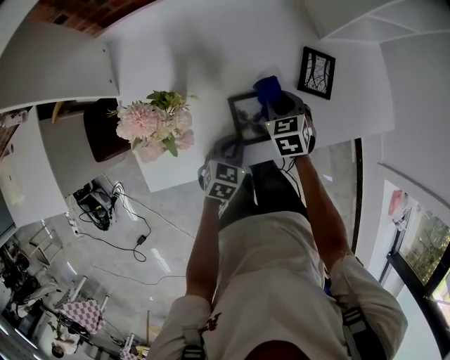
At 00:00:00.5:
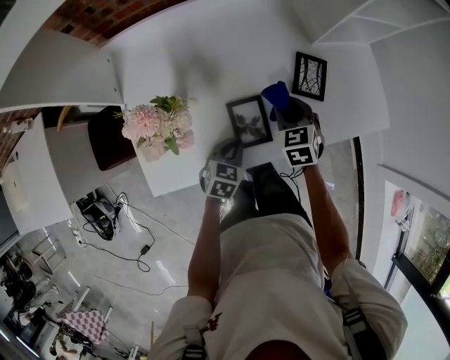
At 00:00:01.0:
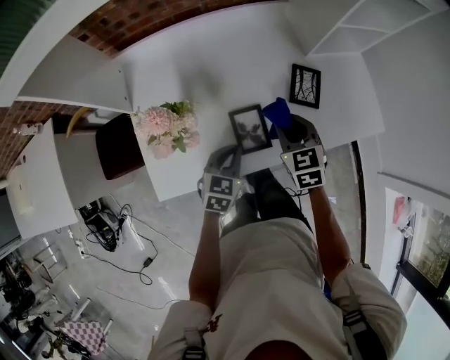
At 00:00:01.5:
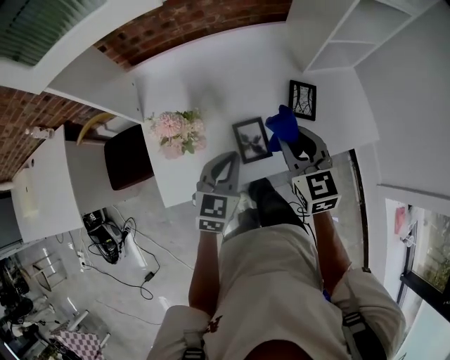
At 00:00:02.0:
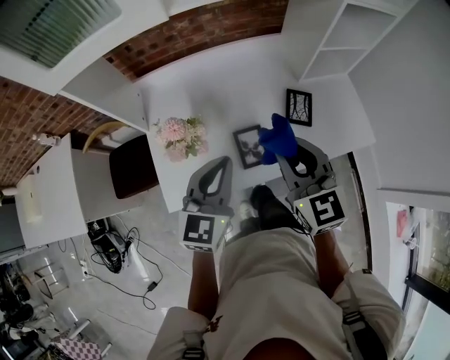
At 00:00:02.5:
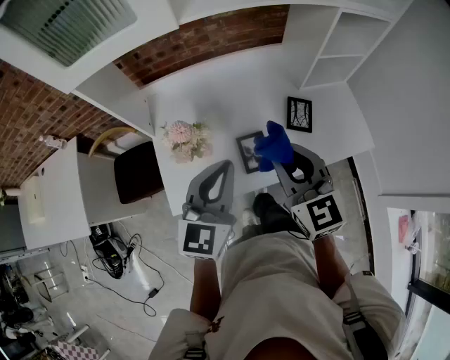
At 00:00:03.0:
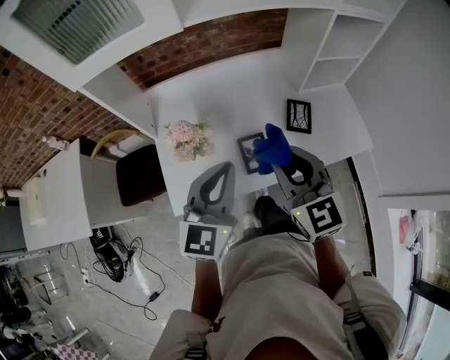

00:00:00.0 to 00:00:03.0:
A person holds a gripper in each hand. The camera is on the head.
00:00:00.0 to 00:00:01.5: Both grippers move upward, about 20 cm. The left gripper rotates some 20 degrees. Meanwhile the right gripper swivels roughly 30 degrees.
00:00:01.5 to 00:00:03.0: The left gripper shifts roughly 15 cm upward; the right gripper goes about 15 cm upward and backward.

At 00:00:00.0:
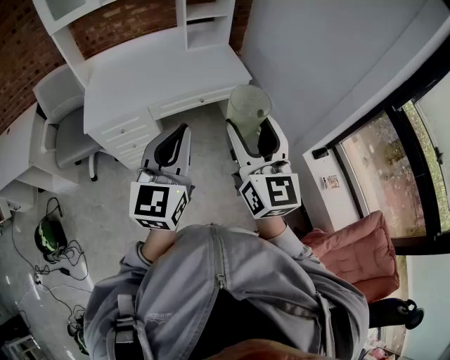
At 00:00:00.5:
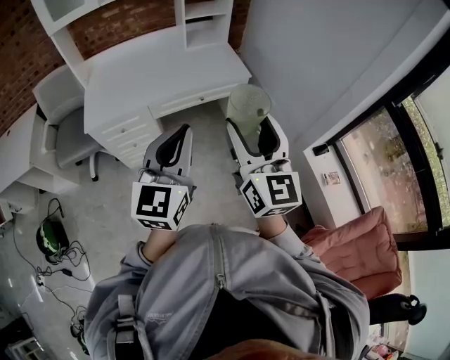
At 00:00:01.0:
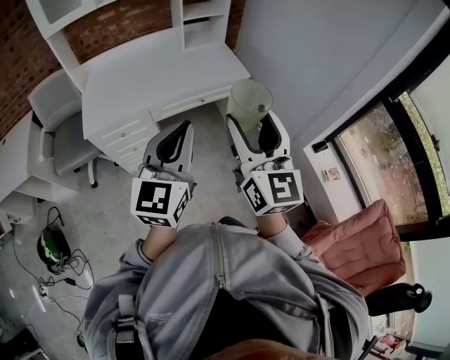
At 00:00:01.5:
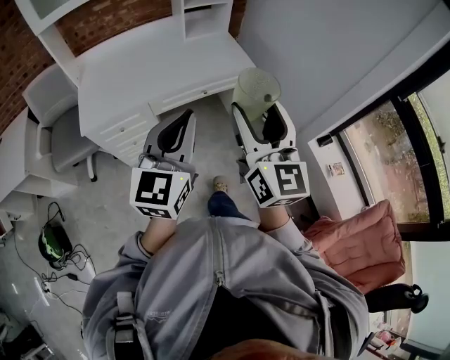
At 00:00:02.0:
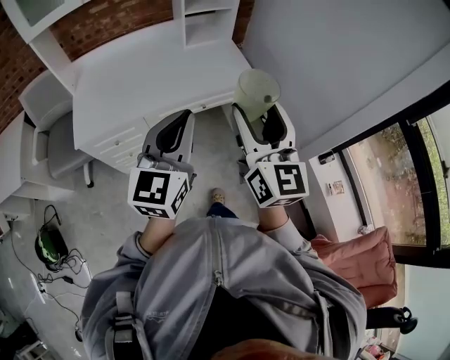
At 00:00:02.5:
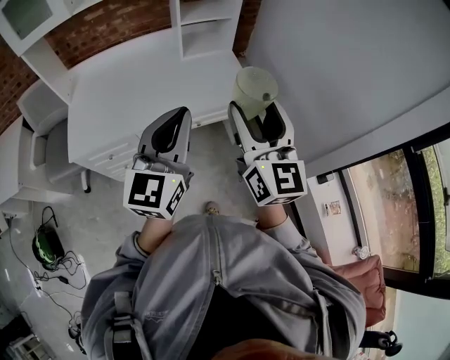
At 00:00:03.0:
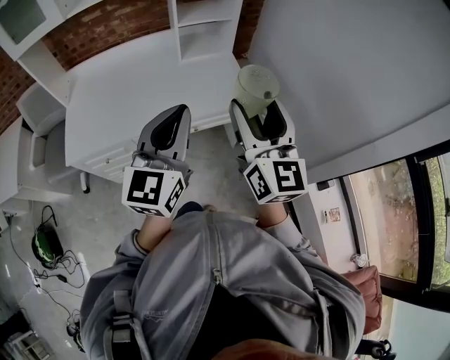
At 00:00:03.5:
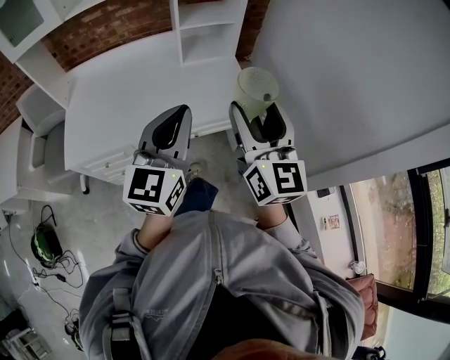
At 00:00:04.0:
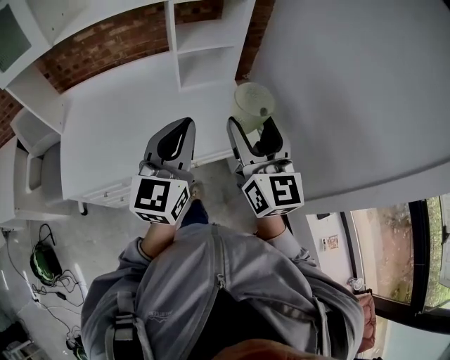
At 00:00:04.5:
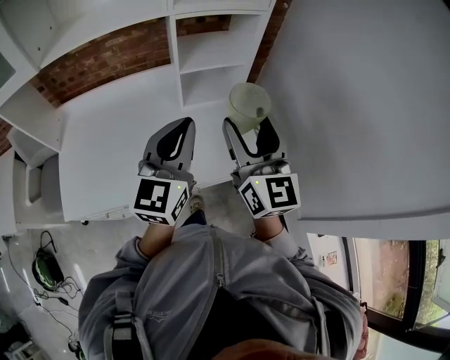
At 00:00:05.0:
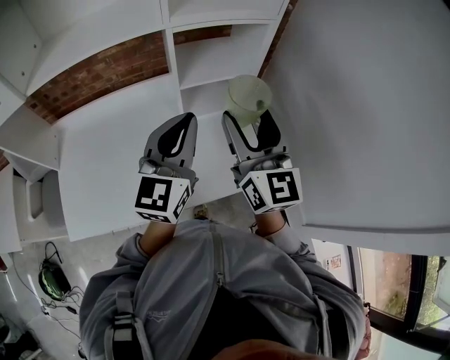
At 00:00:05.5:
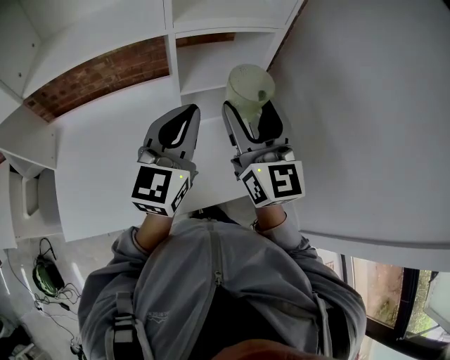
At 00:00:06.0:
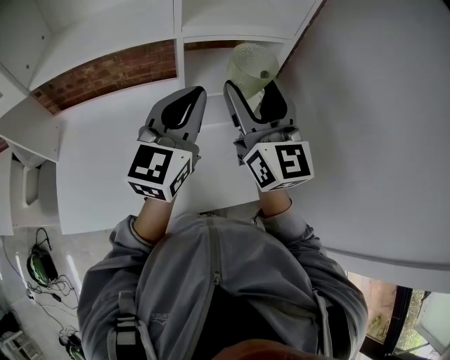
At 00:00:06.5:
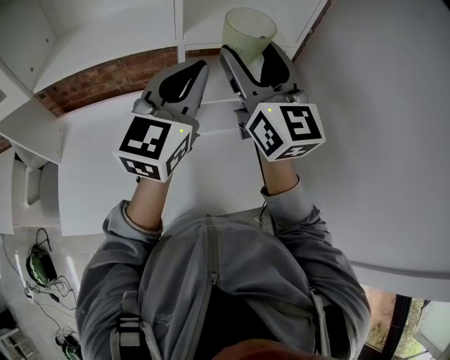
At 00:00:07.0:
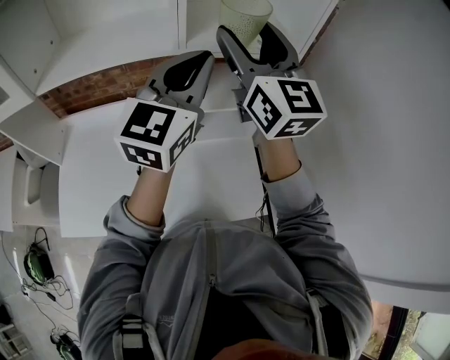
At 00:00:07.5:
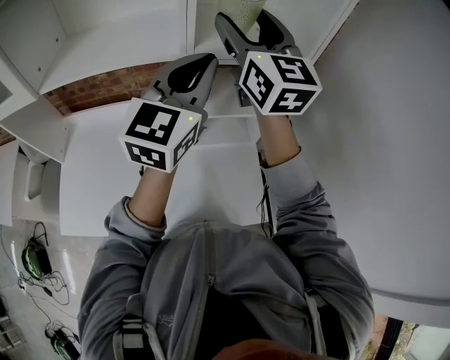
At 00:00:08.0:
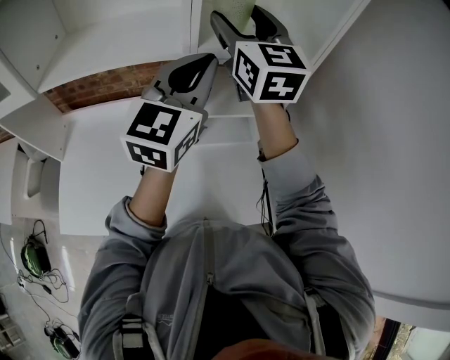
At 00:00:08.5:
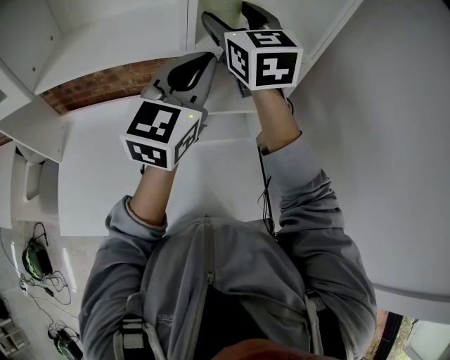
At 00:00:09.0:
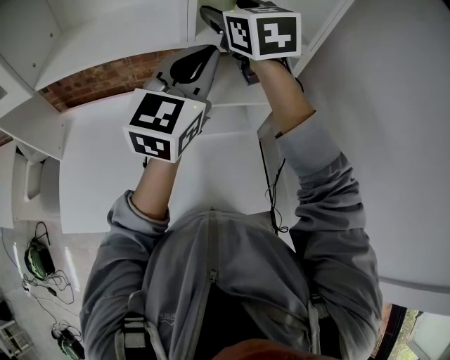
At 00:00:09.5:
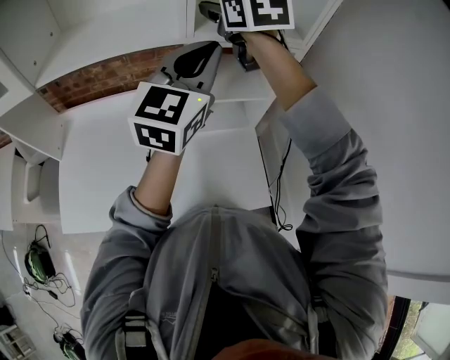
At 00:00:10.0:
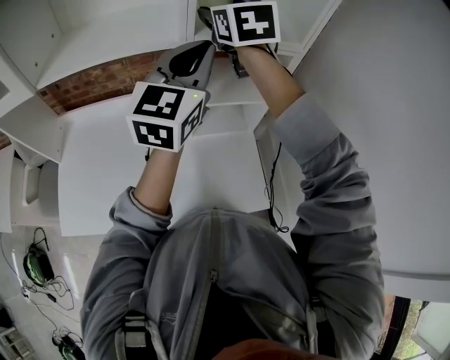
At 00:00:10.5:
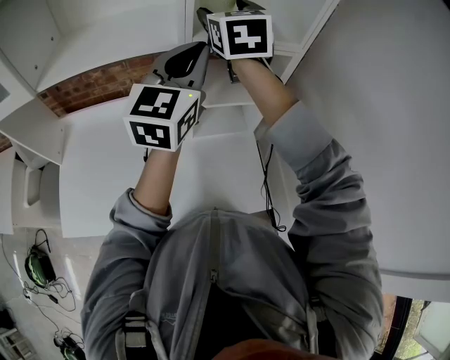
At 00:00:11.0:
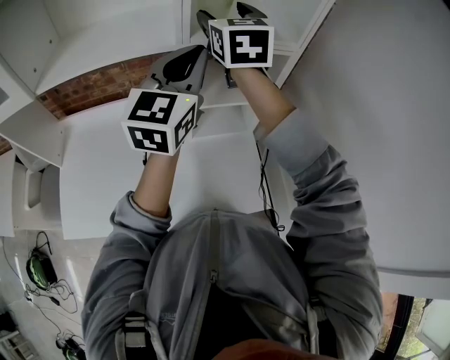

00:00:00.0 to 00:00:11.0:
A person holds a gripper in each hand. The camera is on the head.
00:00:00.0 to 00:00:02.0: The two grippers go roughly 15 cm forward.
00:00:02.0 to 00:00:03.5: Both grippers move forward, some 20 cm.
00:00:03.5 to 00:00:05.5: The grippers both shift forward by approximately 35 cm.
00:00:05.5 to 00:00:07.5: The two grippers go approximately 20 cm forward and upward.
00:00:07.5 to 00:00:09.0: The right gripper changes place by approximately 5 cm, and changes its angle by some 20 degrees.
00:00:09.0 to 00:00:11.0: There are only small adjustments of the grippers.

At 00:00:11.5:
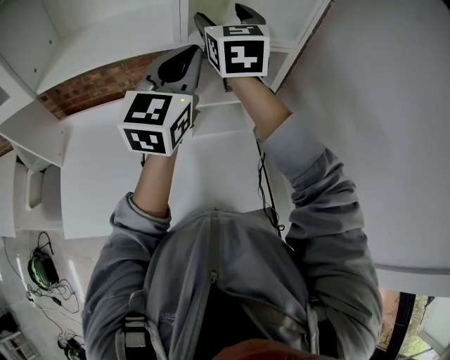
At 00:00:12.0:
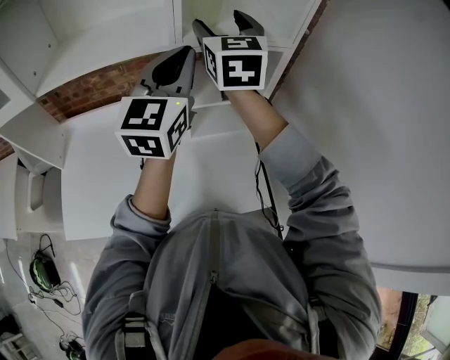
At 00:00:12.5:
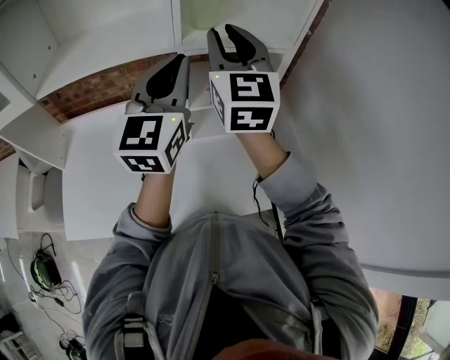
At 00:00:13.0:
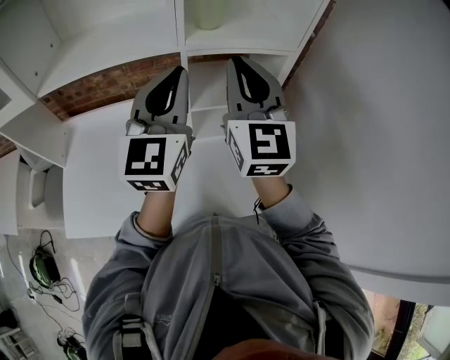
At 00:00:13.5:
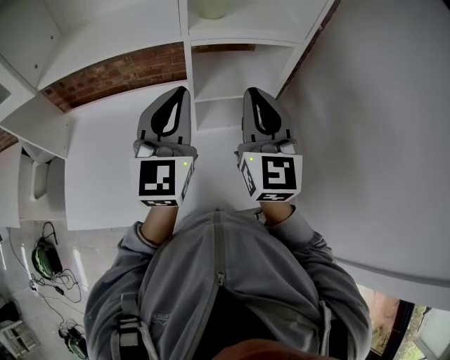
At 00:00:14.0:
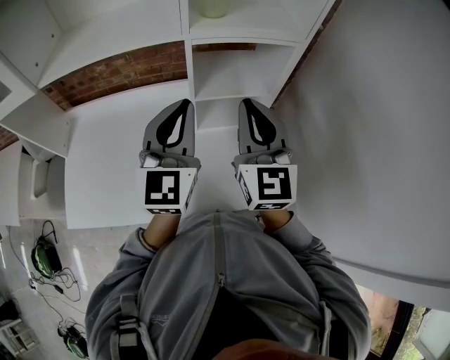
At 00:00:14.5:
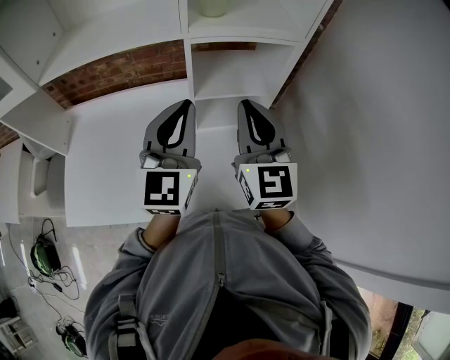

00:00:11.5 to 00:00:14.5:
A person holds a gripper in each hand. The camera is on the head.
00:00:11.5 to 00:00:13.0: The right gripper travels backward by roughly 15 cm, and closes up.
00:00:13.0 to 00:00:14.5: The left gripper heads downward, covering approximately 5 cm, while the right gripper travels downward and backward by about 10 cm.

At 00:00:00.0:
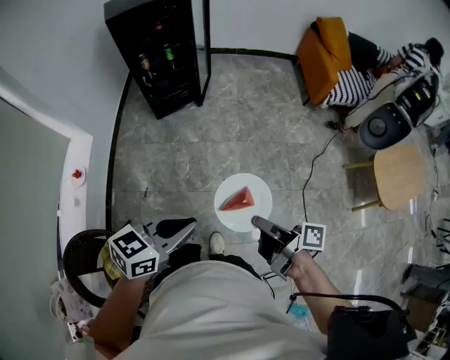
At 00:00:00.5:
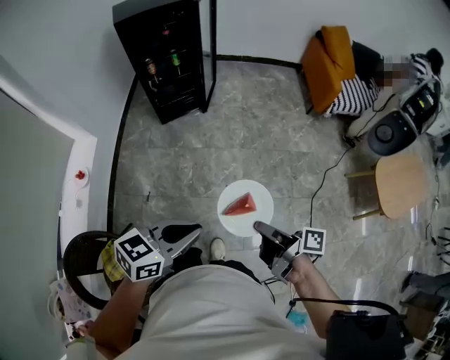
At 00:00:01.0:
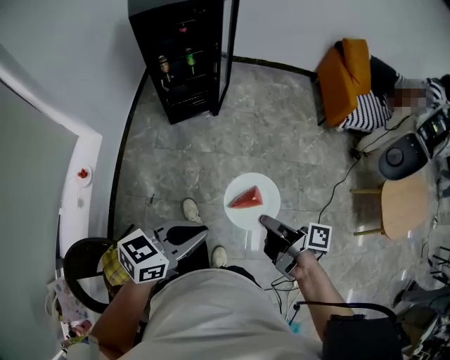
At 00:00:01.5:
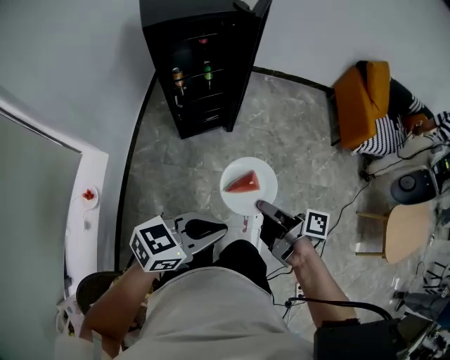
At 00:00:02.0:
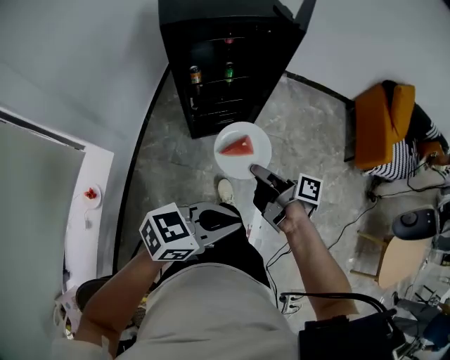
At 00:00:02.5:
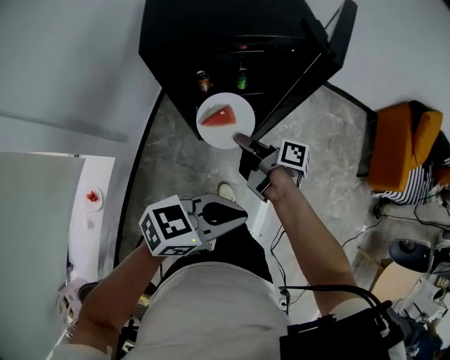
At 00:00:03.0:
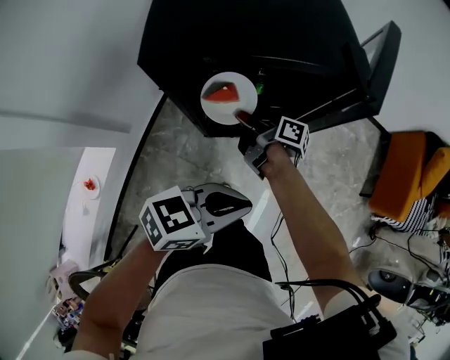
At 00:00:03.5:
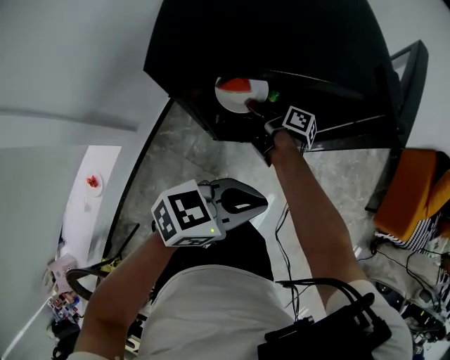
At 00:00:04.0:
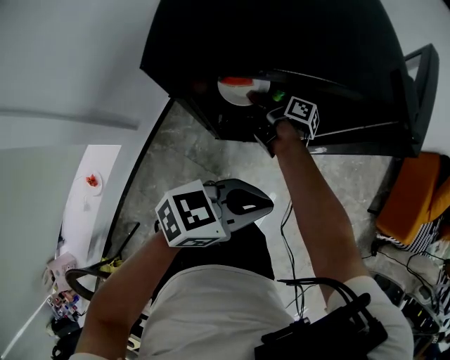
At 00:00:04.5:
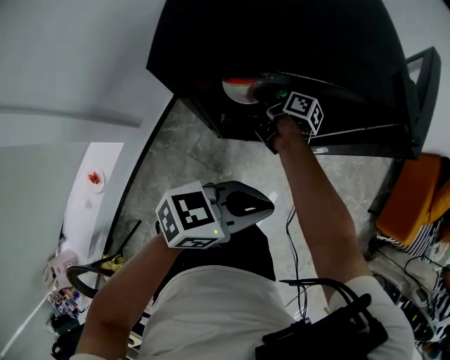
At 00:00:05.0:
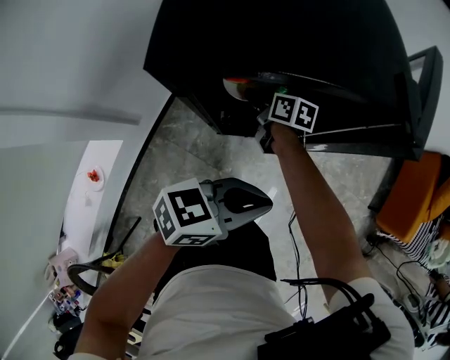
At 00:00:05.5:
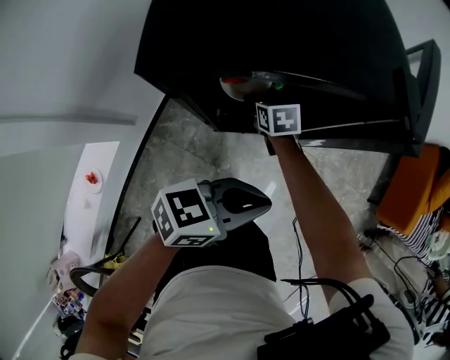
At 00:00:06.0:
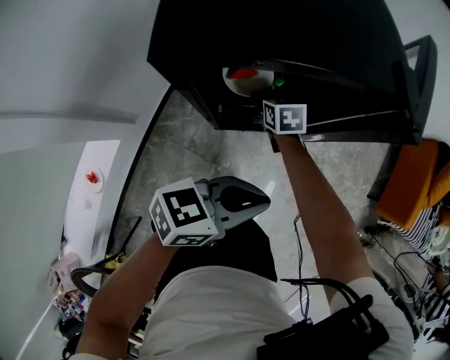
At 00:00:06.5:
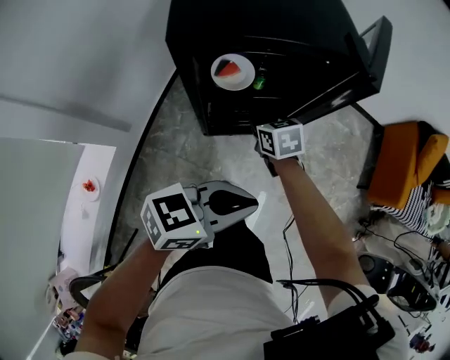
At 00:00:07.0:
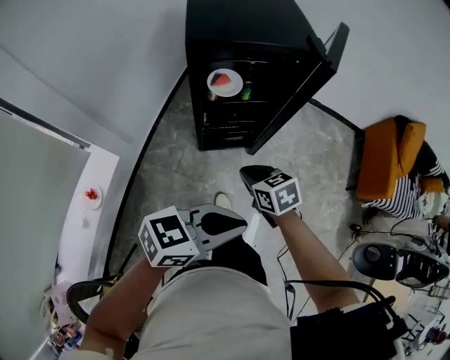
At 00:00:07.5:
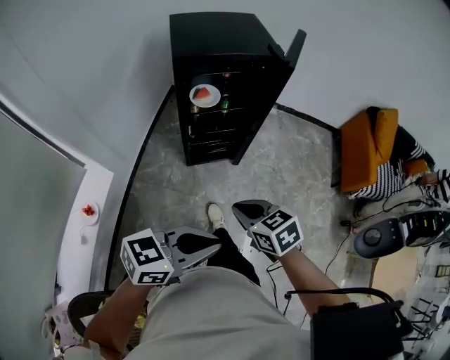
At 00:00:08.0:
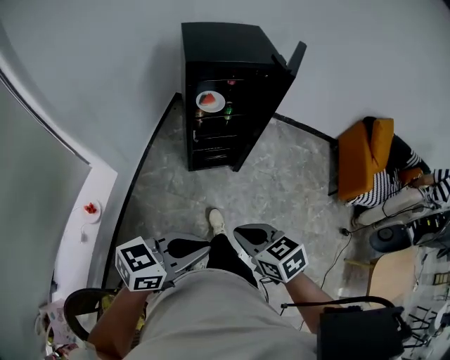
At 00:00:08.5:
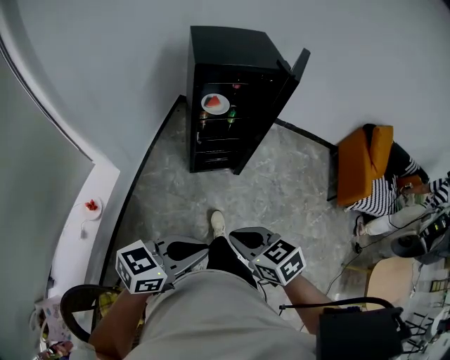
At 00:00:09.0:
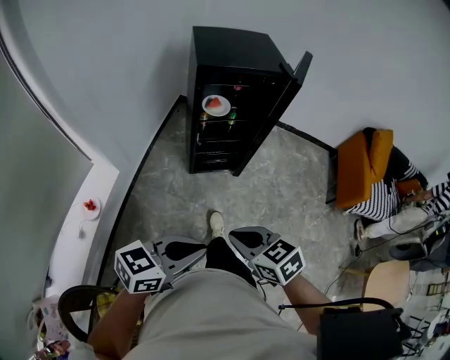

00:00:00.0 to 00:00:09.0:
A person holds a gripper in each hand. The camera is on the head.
00:00:00.0 to 00:00:02.0: Both grippers are carried forward and to the left, about 50 cm.
00:00:02.0 to 00:00:04.5: The left gripper shifts by some 35 cm. The right gripper moves approximately 50 cm.
00:00:04.5 to 00:00:07.0: The right gripper shifts by approximately 40 cm, rolls counterclockwise, seen from behind, by approximately 60 degrees, and opens and closes again. The left gripper changes place by some 25 cm.
00:00:07.0 to 00:00:09.0: The right gripper changes place by roughly 30 cm. The left gripper moves some 20 cm.
